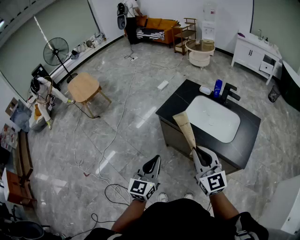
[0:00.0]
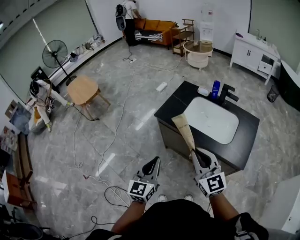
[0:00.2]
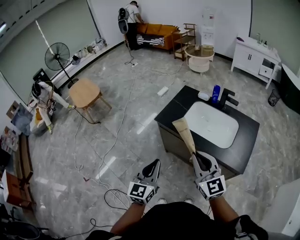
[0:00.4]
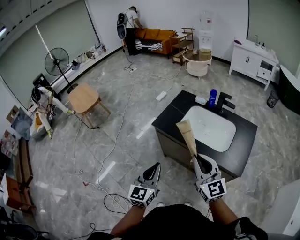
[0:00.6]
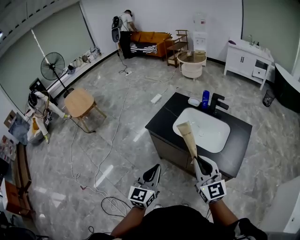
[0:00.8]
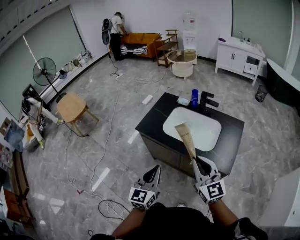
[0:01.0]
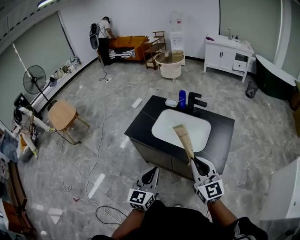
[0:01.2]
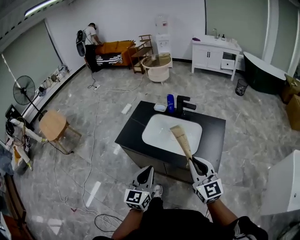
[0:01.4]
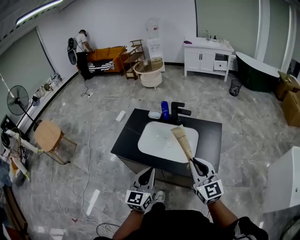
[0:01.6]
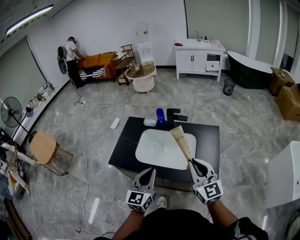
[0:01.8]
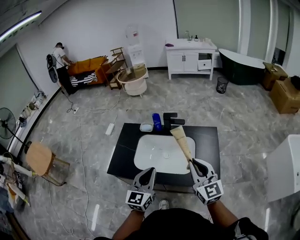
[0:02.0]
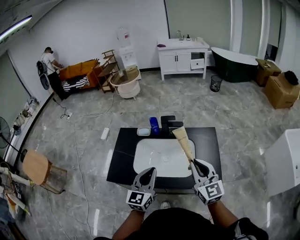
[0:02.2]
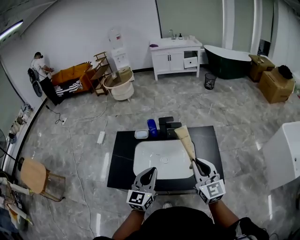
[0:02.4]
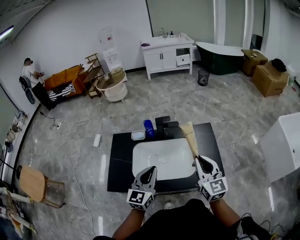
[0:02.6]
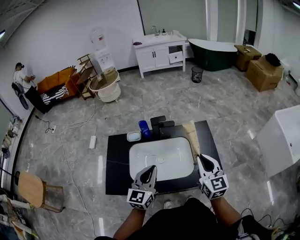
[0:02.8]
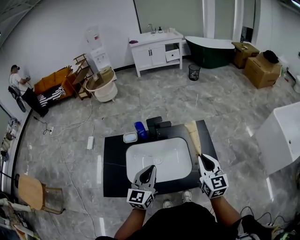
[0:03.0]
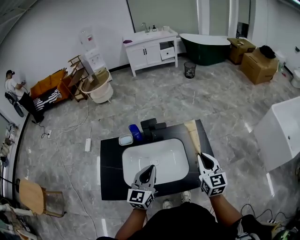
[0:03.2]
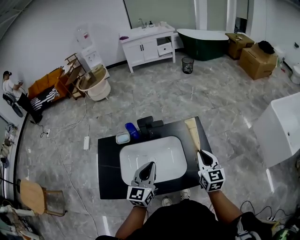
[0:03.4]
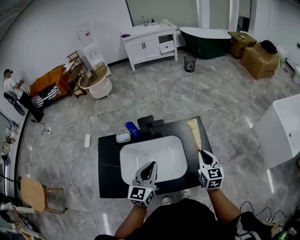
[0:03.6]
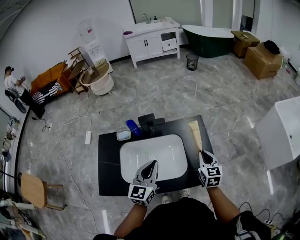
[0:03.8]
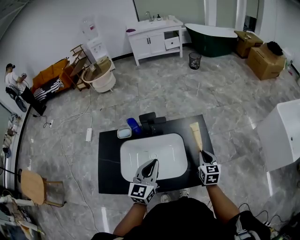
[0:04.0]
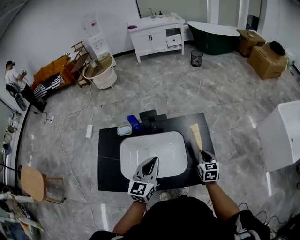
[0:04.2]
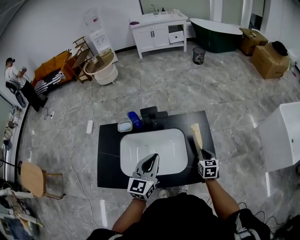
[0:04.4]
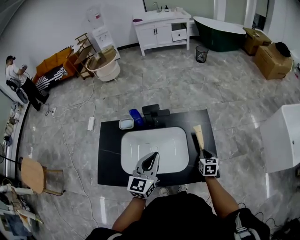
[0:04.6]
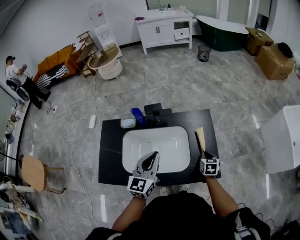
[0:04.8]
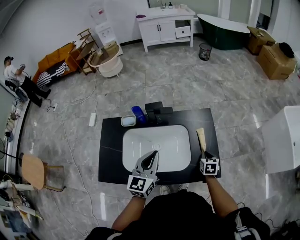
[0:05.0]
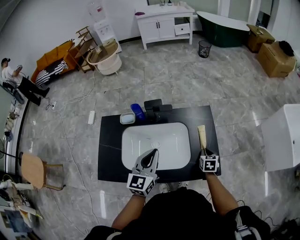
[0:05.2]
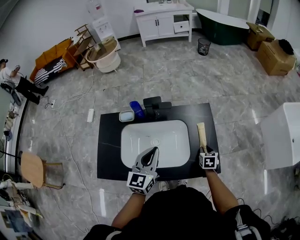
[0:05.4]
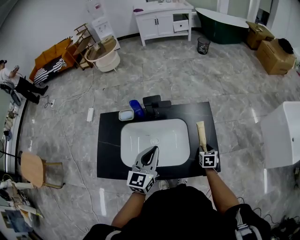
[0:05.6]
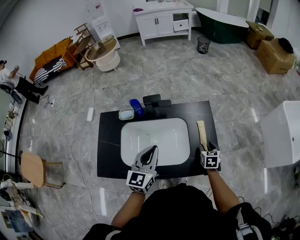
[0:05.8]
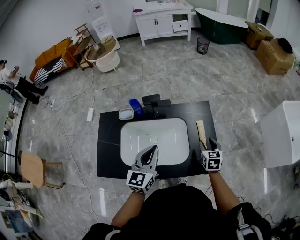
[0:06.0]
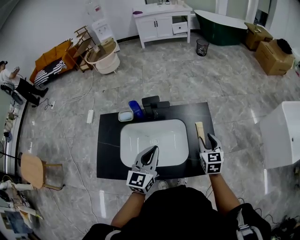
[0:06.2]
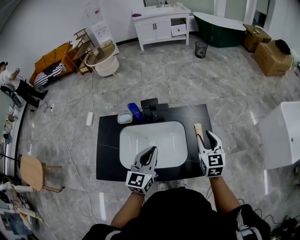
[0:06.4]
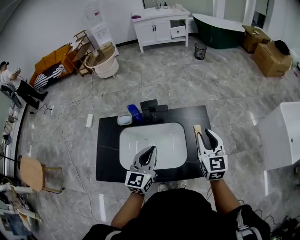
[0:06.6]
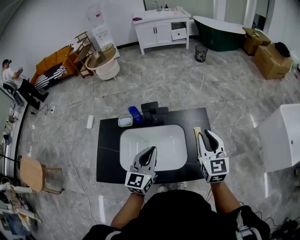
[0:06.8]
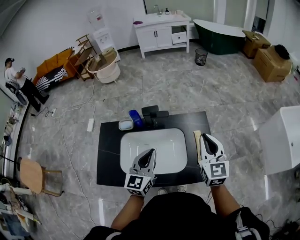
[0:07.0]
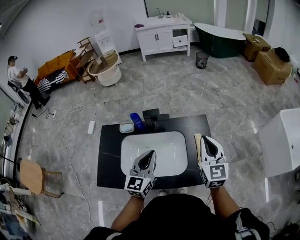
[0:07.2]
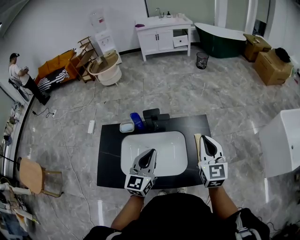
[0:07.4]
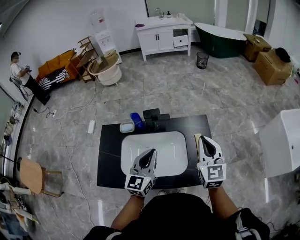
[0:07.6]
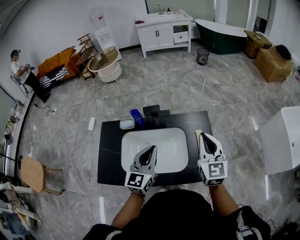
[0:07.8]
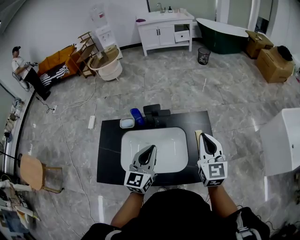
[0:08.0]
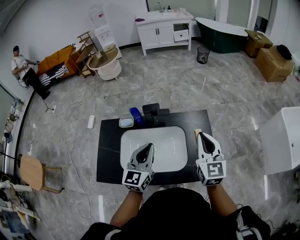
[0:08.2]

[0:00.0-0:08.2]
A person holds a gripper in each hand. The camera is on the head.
0.0 to 1.6 s: The right gripper moves to the right, roughly 25 cm, and rotates approximately 20 degrees, while the left gripper moves to the right and forward, some 25 cm.
1.6 to 3.2 s: The right gripper shifts by approximately 15 cm, and rotates some 40 degrees; the left gripper changes place by some 20 cm, and rotates approximately 30 degrees.
3.2 to 5.0 s: The right gripper travels downward by about 25 cm, and points its fingers roughly 40 degrees further downward.
5.0 to 6.6 s: The right gripper shifts some 30 cm upward, tips its fingers upward by about 40 degrees, and opens up.
6.6 to 8.2 s: The right gripper closes.

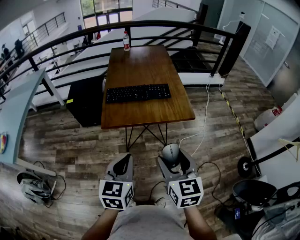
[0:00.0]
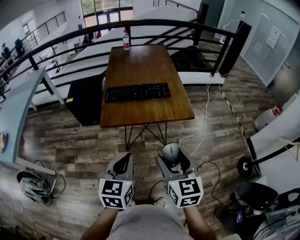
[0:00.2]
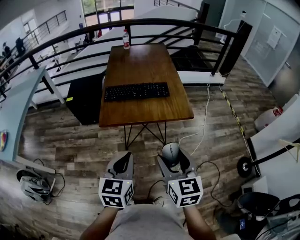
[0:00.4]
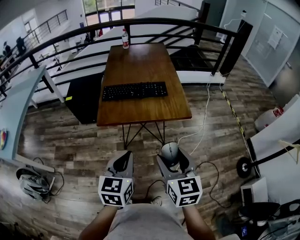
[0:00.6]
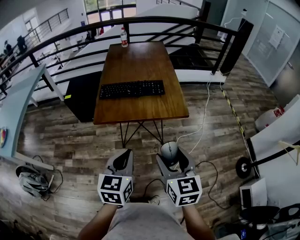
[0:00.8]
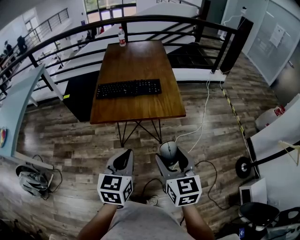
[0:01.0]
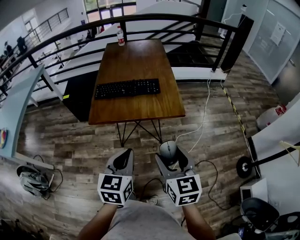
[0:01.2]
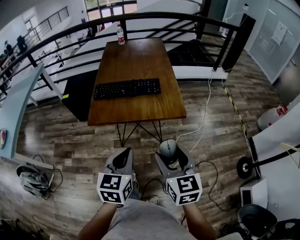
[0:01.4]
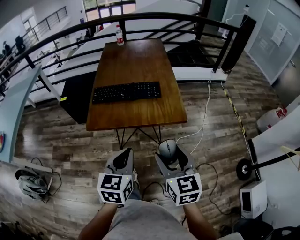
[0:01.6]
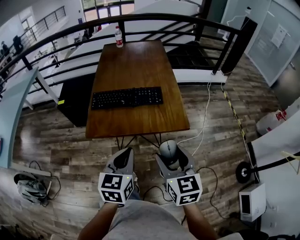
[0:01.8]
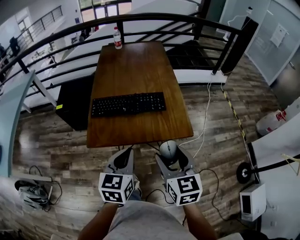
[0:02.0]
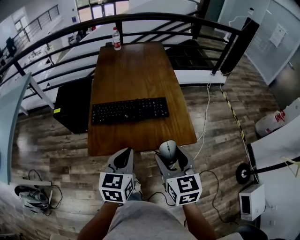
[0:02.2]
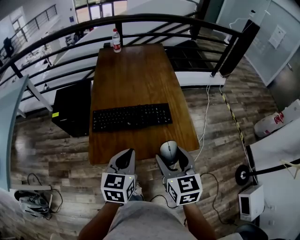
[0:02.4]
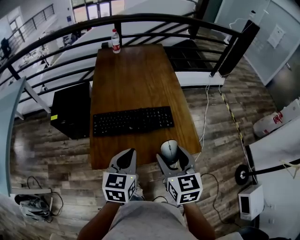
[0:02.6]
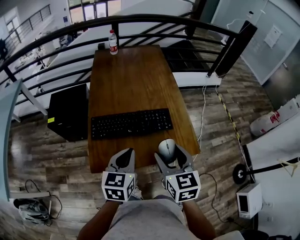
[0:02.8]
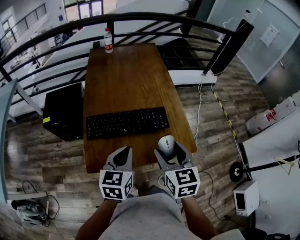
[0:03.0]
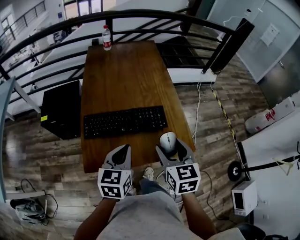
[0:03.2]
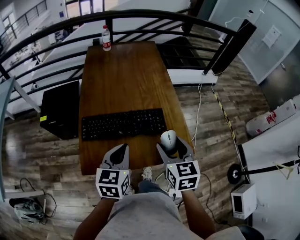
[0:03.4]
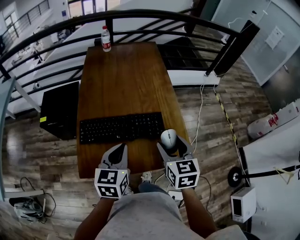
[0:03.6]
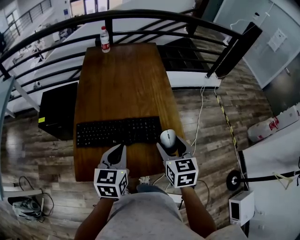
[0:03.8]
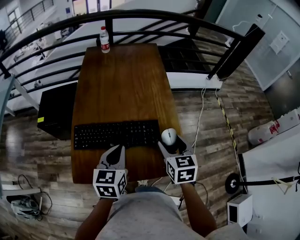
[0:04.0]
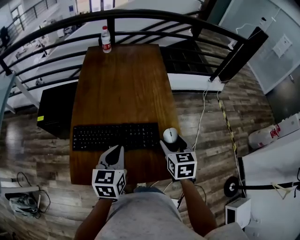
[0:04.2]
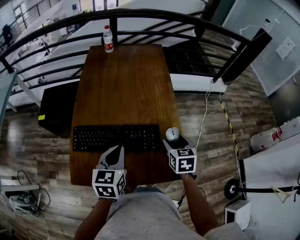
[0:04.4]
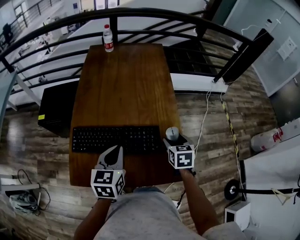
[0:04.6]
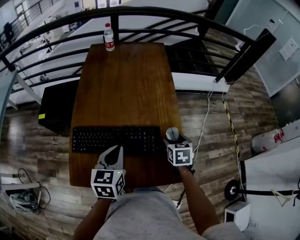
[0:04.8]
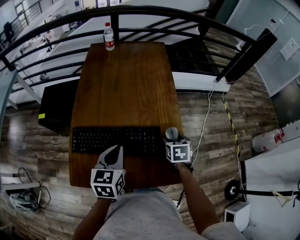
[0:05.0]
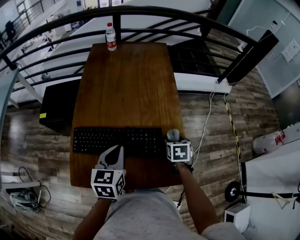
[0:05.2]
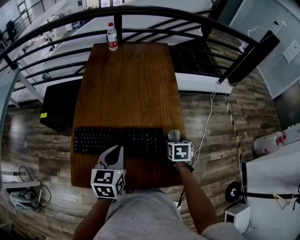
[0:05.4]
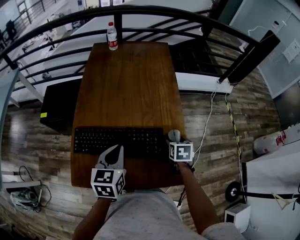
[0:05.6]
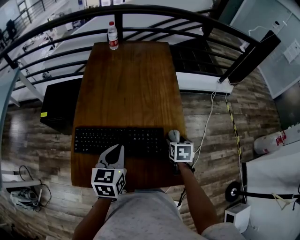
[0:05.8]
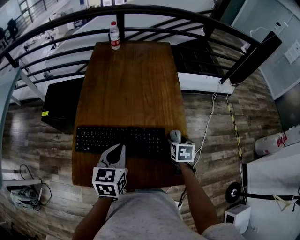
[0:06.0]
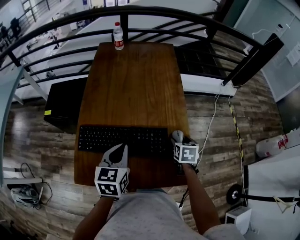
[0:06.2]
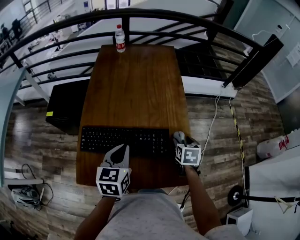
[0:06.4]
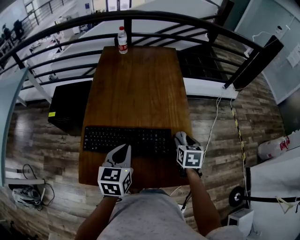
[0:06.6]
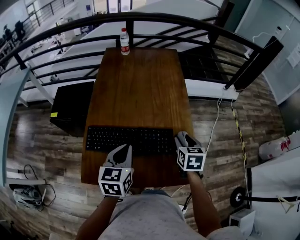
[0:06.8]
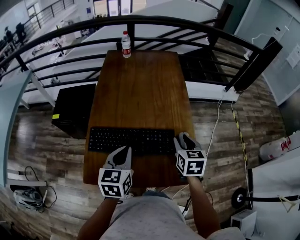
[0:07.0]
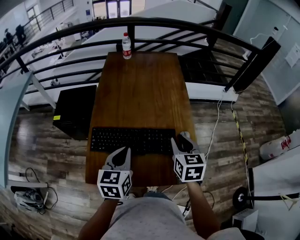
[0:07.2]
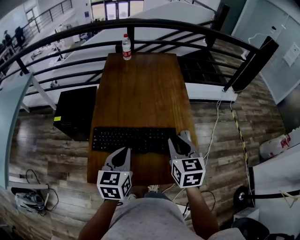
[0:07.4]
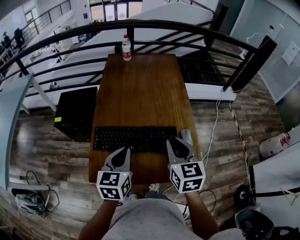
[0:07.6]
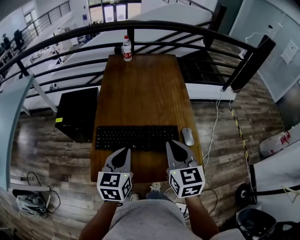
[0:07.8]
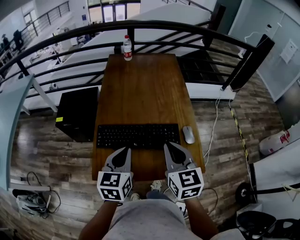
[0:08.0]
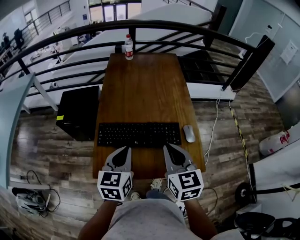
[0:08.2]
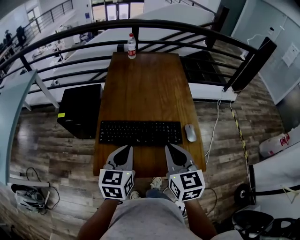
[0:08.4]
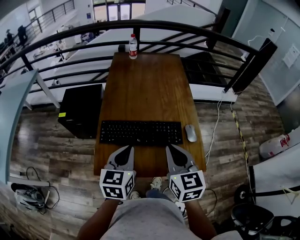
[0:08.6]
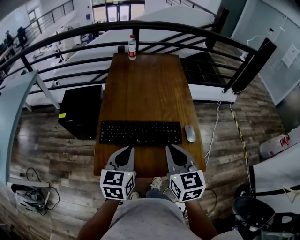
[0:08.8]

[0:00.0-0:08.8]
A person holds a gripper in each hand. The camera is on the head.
0.0 to 1.4 s: The grippers both shift to the right by approximately 10 cm.
1.4 to 3.0 s: Both grippers travel together forward, about 30 cm.
3.0 to 4.4 s: The right gripper goes approximately 25 cm forward, to the right and downward. The left gripper travels forward by approximately 10 cm.
4.4 to 5.8 s: The right gripper travels downward by roughly 10 cm.
5.8 to 7.4 s: The right gripper goes roughly 25 cm upward, to the left and backward, turns by about 30 degrees, and closes. Meanwhile the left gripper goes some 5 cm backward.
7.4 to 8.8 s: The right gripper goes about 10 cm backward and to the left. The left gripper ends up approximately 5 cm from where it was.

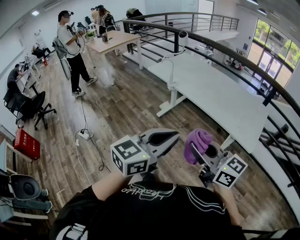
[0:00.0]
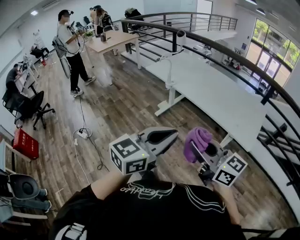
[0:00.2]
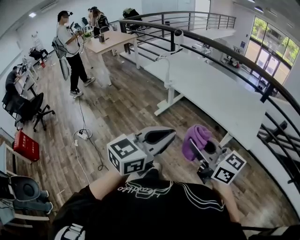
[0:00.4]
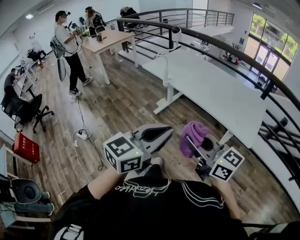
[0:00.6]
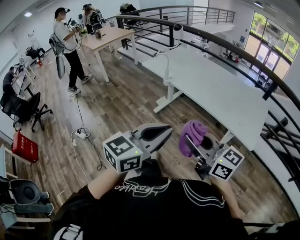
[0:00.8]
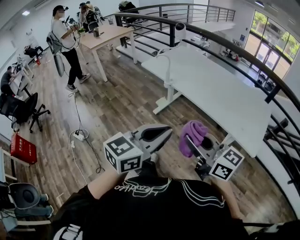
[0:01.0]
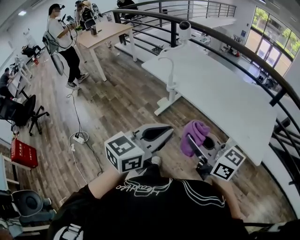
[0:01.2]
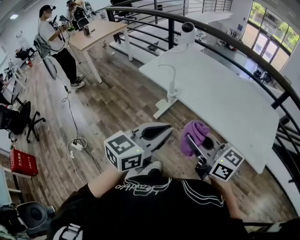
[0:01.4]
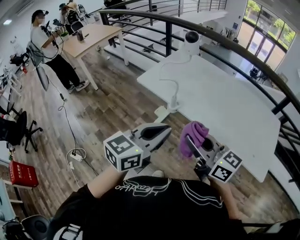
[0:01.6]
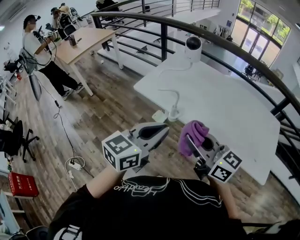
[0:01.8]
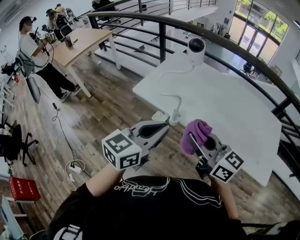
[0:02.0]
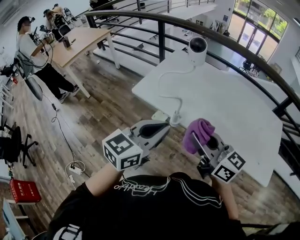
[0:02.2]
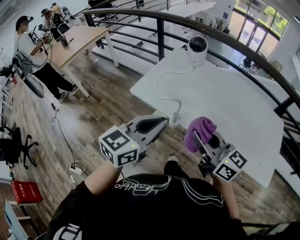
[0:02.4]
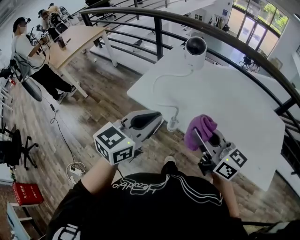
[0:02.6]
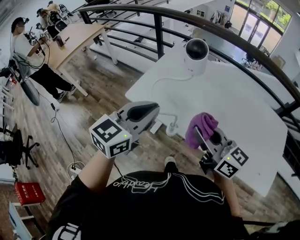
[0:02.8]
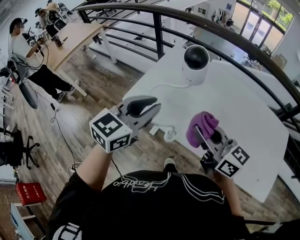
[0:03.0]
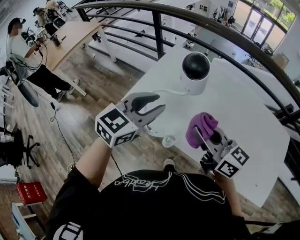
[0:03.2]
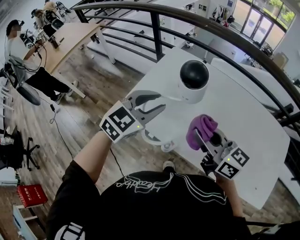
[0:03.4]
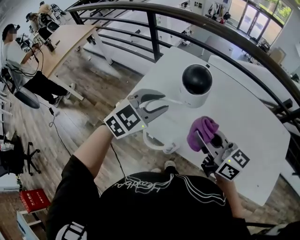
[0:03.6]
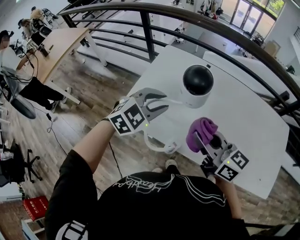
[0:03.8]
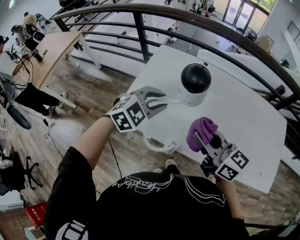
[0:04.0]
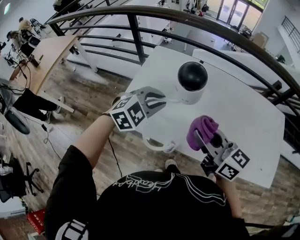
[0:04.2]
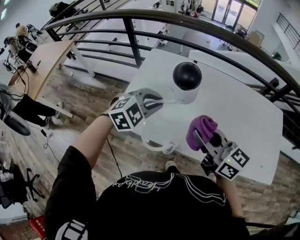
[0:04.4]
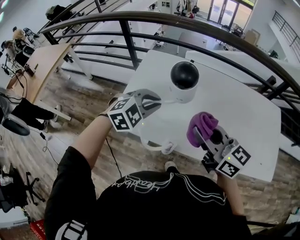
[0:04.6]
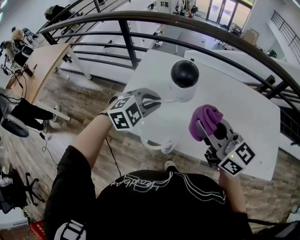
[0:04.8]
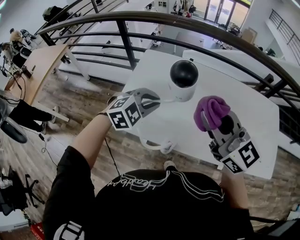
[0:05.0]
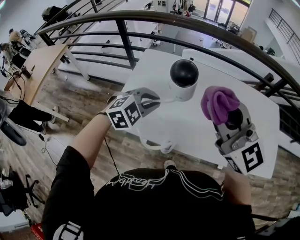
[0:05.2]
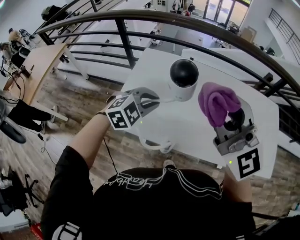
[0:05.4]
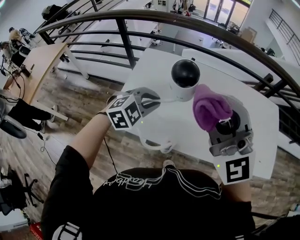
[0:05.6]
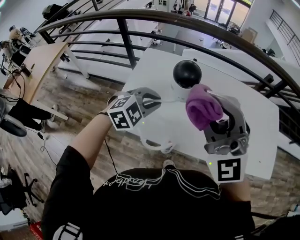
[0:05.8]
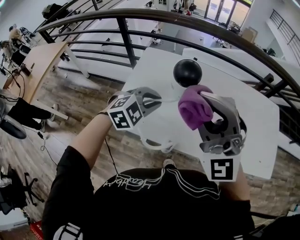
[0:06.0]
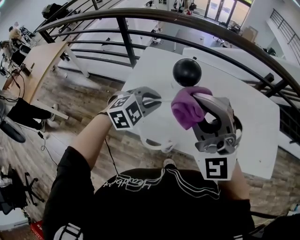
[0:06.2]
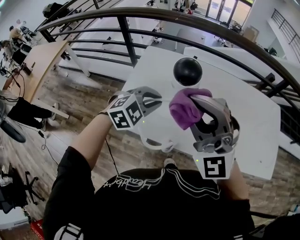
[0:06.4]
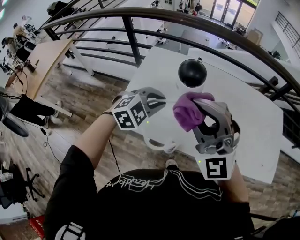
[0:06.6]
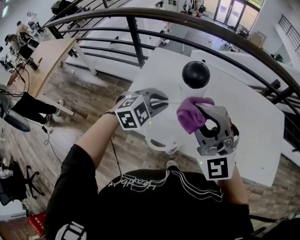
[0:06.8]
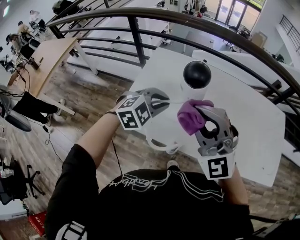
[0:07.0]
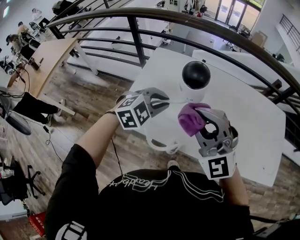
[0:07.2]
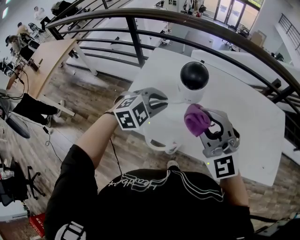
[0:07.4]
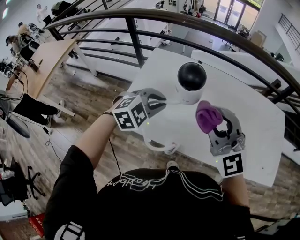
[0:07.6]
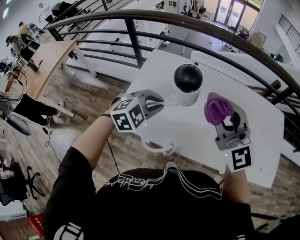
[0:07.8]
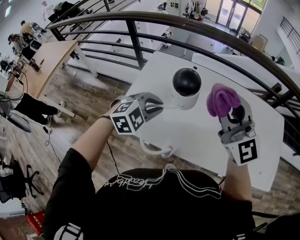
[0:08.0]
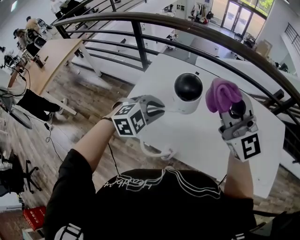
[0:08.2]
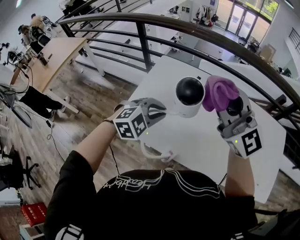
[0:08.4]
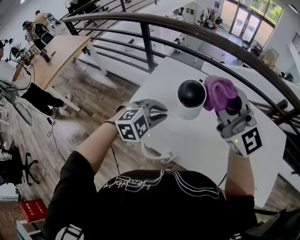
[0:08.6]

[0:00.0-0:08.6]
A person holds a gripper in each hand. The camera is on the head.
0.0 to 1.4 s: The two grippers go approximately 30 cm forward.
1.4 to 2.8 s: The grippers both shift forward by roughly 35 cm.
2.8 to 4.4 s: The right gripper is displaced forward by some 10 cm. Meanwhile the left gripper is displaced forward and downward by some 20 cm, and angles its fingers downward, by roughly 30 degrees.
4.4 to 5.8 s: The right gripper goes about 15 cm upward, and rotates around the line of its fingers by roughly 70 degrees, counterclockwise from behind.
5.8 to 7.2 s: The right gripper shifts roughly 10 cm downward.
7.2 to 8.6 s: The right gripper travels upward and forward by roughly 15 cm, and changes its angle by about 30 degrees.
